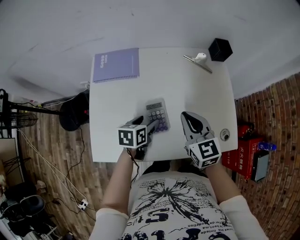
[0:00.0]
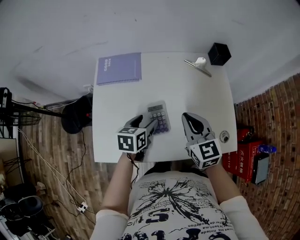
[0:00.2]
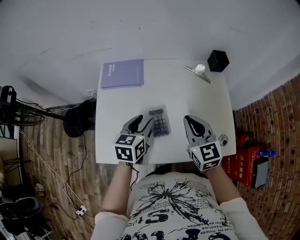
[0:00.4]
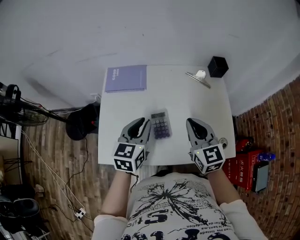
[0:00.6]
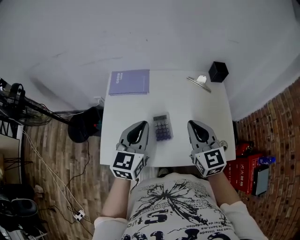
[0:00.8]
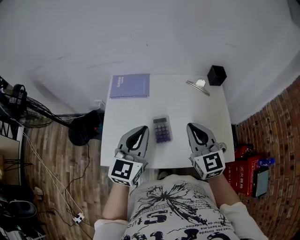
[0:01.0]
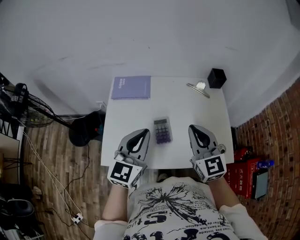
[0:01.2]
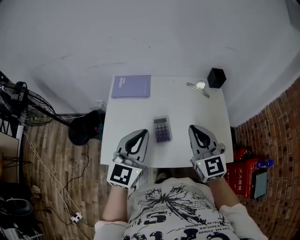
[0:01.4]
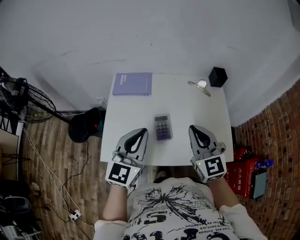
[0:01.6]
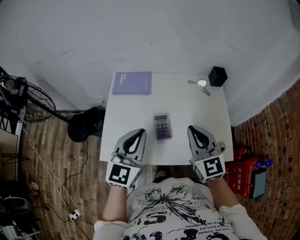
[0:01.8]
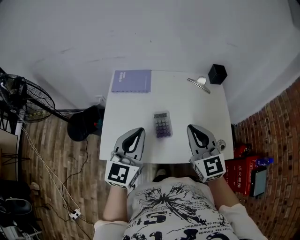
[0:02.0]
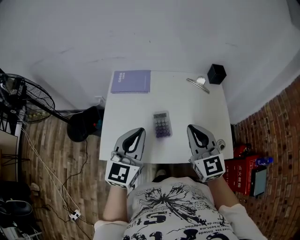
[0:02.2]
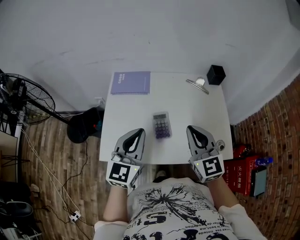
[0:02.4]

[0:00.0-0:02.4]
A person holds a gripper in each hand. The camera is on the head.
0:00.0 to 0:01.2: The right gripper travels upward and backward by some 15 cm. The left gripper moves upward, some 25 cm, tips its fingers upward by about 40 degrees, and closes up.
0:01.2 to 0:02.4: There are only small adjustments of the grippers.

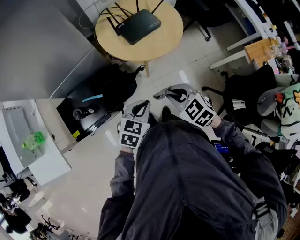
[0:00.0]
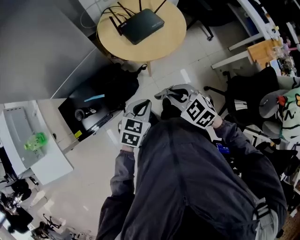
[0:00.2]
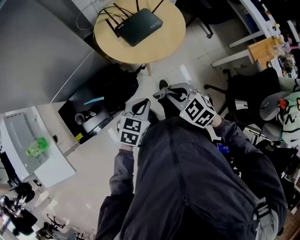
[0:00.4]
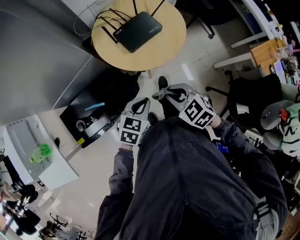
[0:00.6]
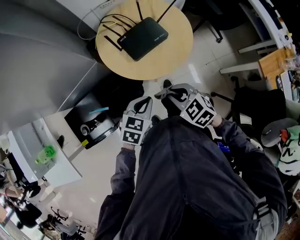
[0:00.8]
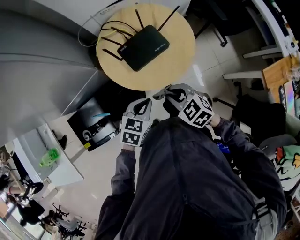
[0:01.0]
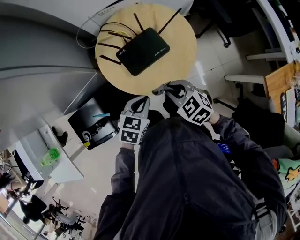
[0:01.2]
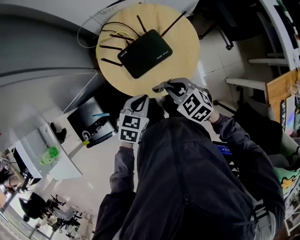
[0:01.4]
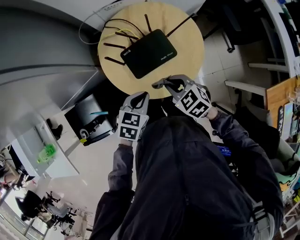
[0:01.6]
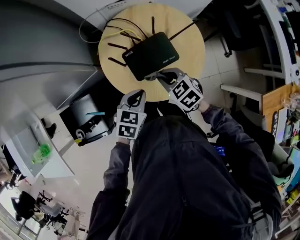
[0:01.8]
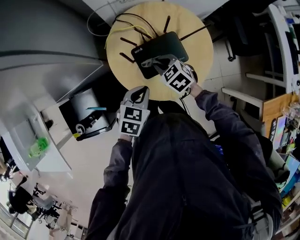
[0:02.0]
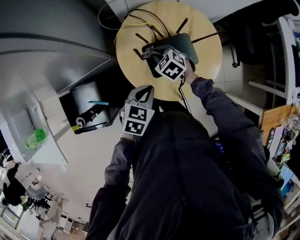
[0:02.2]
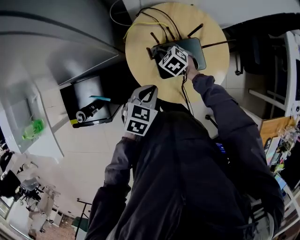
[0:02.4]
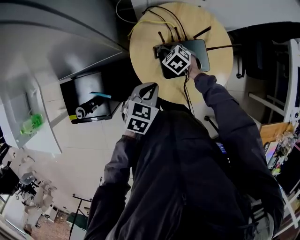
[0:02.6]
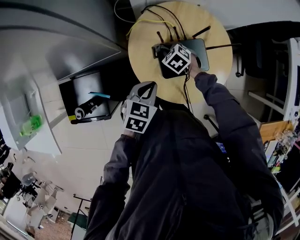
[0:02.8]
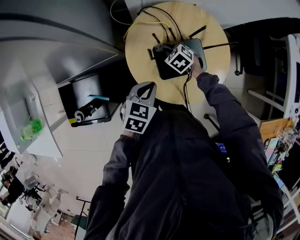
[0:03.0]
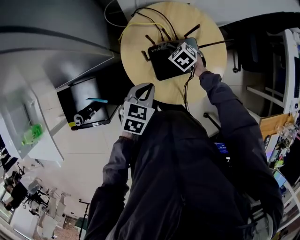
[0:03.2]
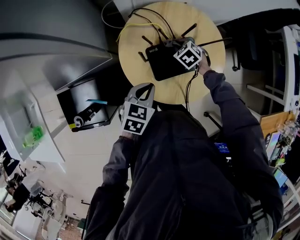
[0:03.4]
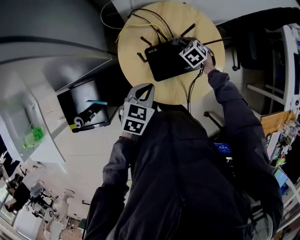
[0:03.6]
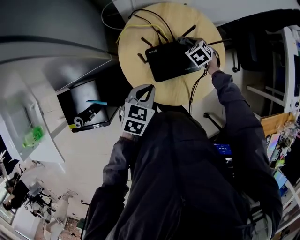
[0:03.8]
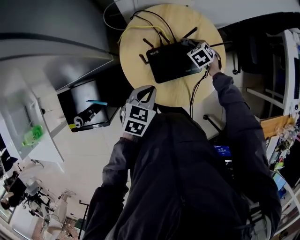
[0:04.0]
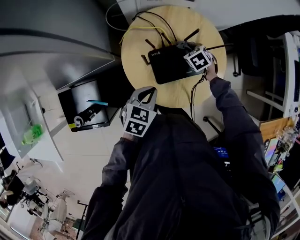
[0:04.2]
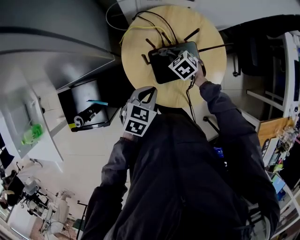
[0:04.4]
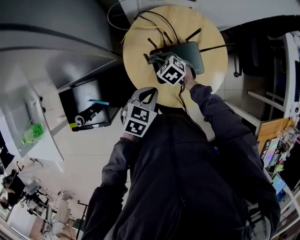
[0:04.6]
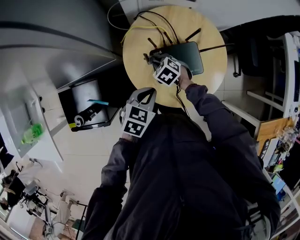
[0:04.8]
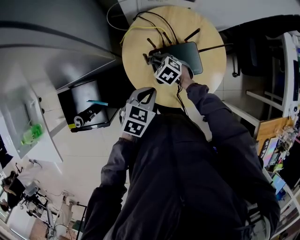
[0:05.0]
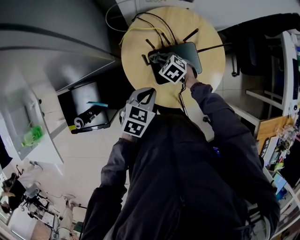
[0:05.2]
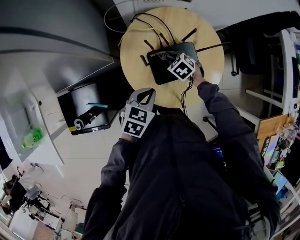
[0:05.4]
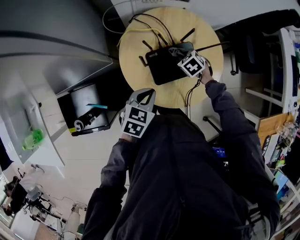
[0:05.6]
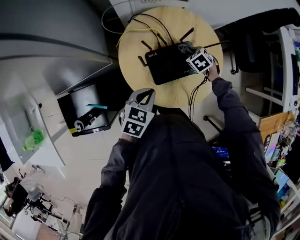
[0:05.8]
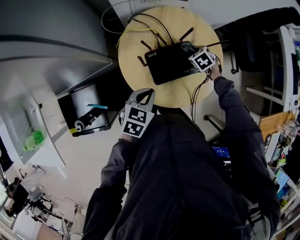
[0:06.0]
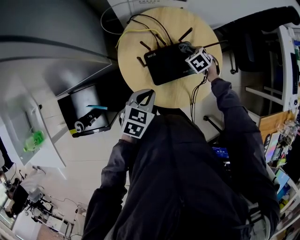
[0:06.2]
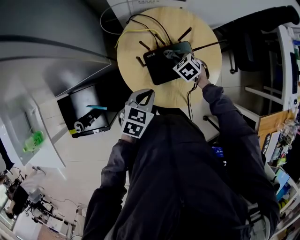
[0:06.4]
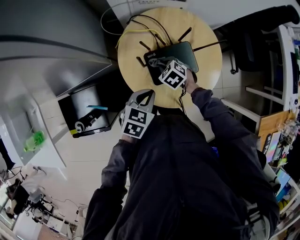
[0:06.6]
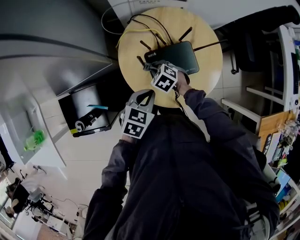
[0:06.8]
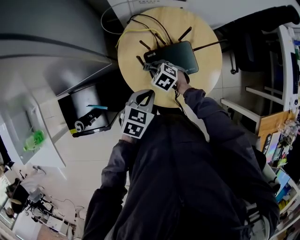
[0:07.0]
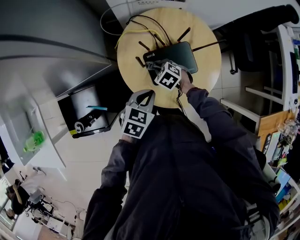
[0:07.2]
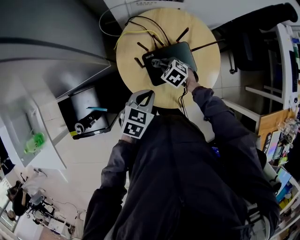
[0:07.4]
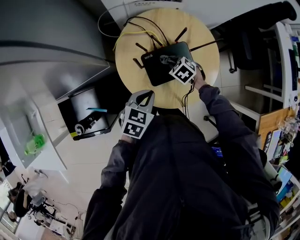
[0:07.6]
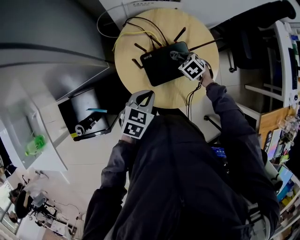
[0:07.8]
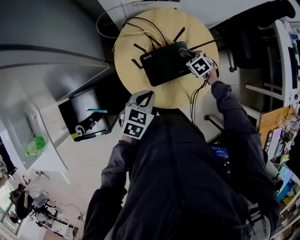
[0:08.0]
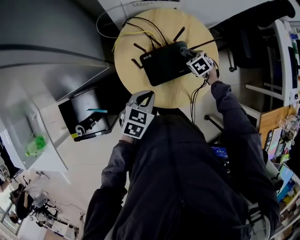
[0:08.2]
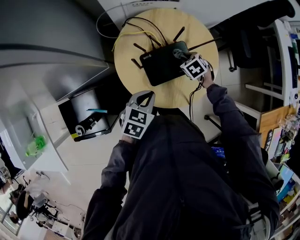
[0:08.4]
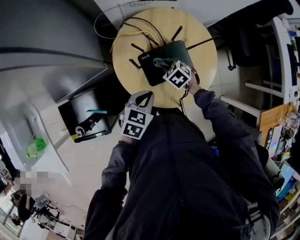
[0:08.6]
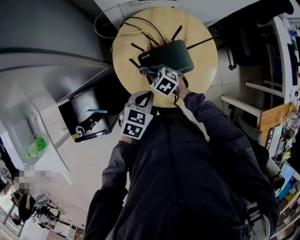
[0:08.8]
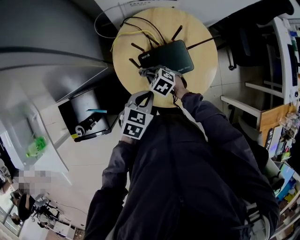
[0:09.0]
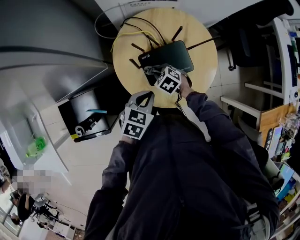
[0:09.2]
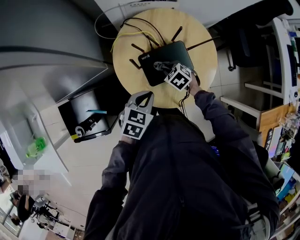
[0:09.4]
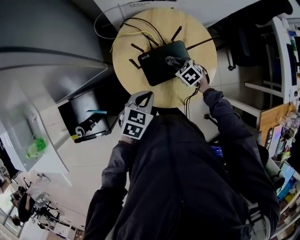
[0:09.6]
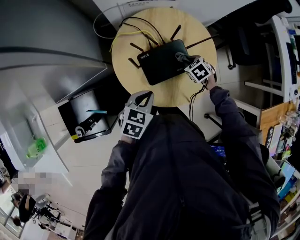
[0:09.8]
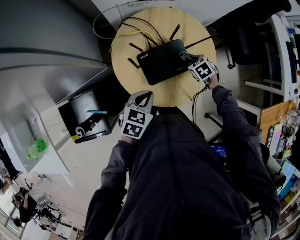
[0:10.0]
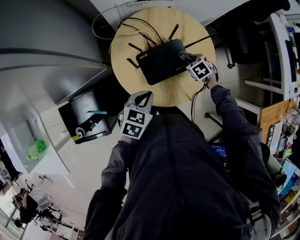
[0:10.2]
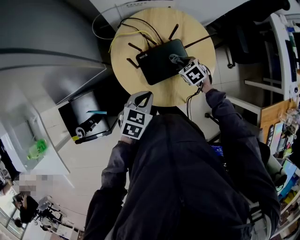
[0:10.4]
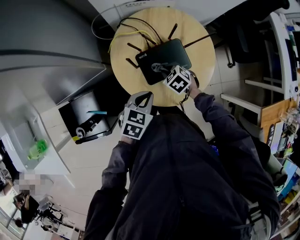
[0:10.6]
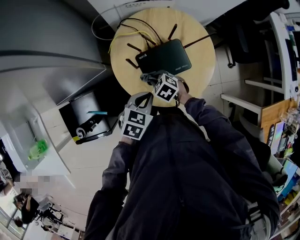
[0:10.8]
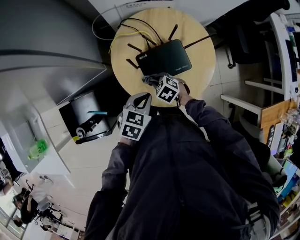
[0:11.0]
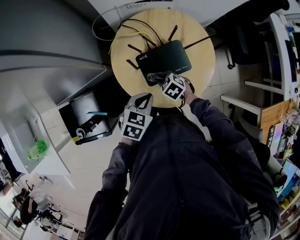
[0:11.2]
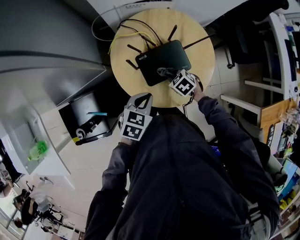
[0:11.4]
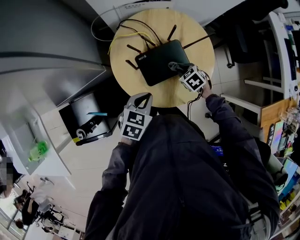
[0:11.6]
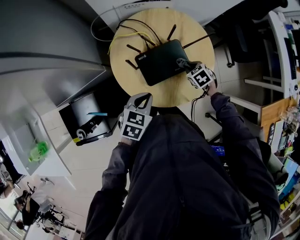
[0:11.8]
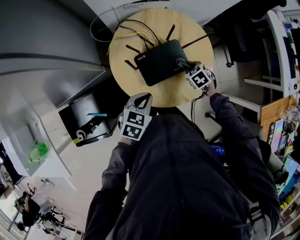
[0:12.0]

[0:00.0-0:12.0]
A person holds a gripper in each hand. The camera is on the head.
0:00.0 to 0:01.6: The grippers both shift forward by roughly 30 cm.
0:01.6 to 0:03.0: The left gripper moves to the left and forward, roughly 10 cm. The right gripper moves forward, downward and to the left, some 25 cm, and rotates roughly 20 degrees.
0:03.0 to 0:04.4: The right gripper moves some 15 cm to the right and comes back.
0:04.4 to 0:06.0: The right gripper heads to the right, covering some 15 cm.
0:06.0 to 0:07.6: The right gripper is displaced to the left and backward by roughly 10 cm.
0:07.6 to 0:09.0: The right gripper goes roughly 10 cm to the left and backward.
0:09.0 to 0:10.4: The right gripper moves to the right, some 15 cm, and rotates roughly 20 degrees.
0:10.4 to 0:12.0: The right gripper travels to the left and back again, about 15 cm each way.

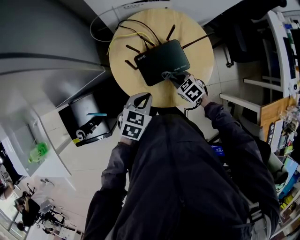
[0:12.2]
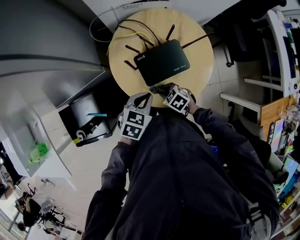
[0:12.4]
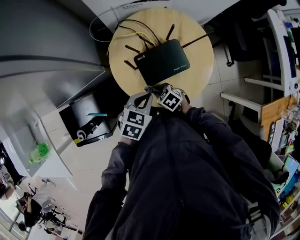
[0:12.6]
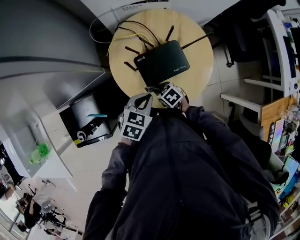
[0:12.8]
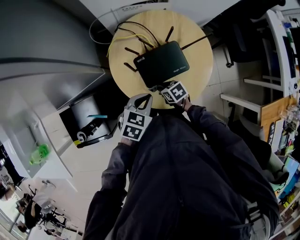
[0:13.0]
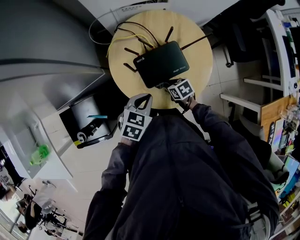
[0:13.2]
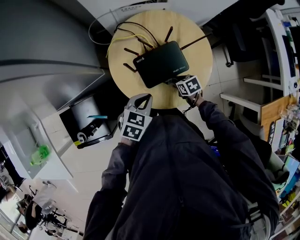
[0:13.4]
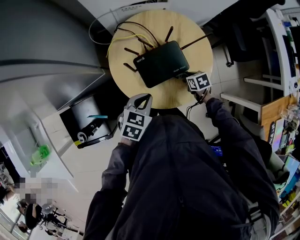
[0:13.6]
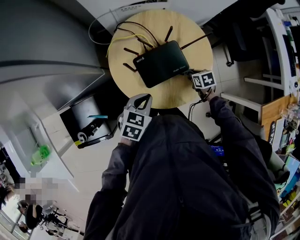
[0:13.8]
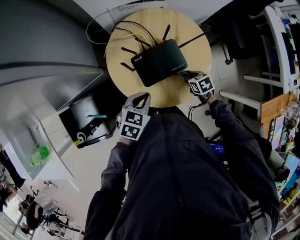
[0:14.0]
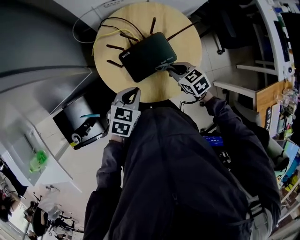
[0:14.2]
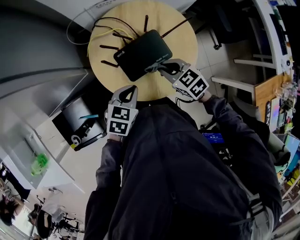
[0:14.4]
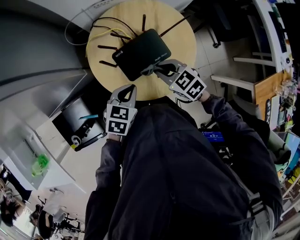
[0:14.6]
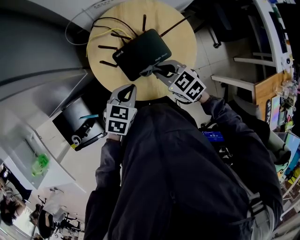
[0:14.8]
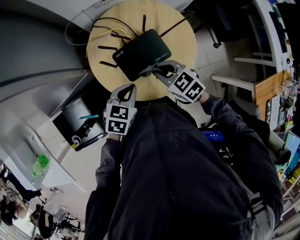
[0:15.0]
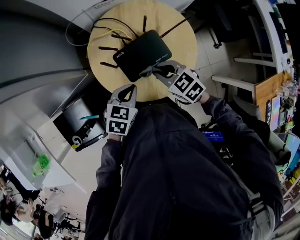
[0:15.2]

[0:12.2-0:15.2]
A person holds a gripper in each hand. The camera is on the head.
0:12.2 to 0:13.8: The right gripper ends up approximately 15 cm from where it was, and changes its angle by roughly 30 degrees.
0:13.8 to 0:15.2: The right gripper is displaced upward and to the left by about 25 cm, and changes its angle by some 40 degrees.

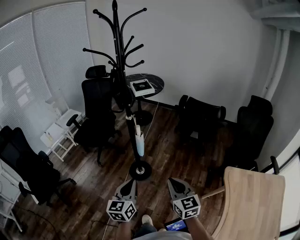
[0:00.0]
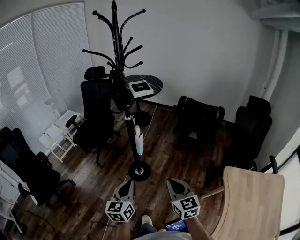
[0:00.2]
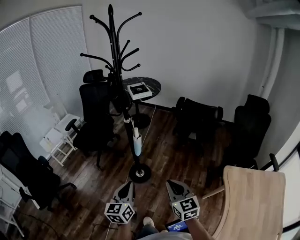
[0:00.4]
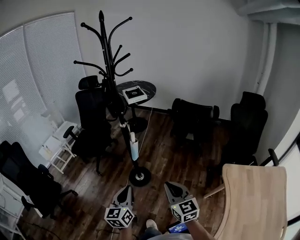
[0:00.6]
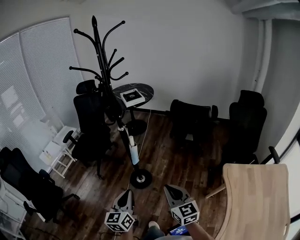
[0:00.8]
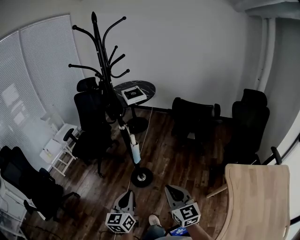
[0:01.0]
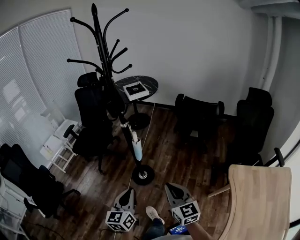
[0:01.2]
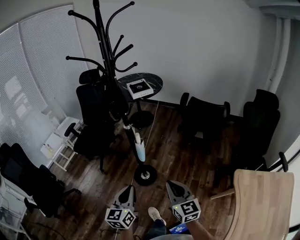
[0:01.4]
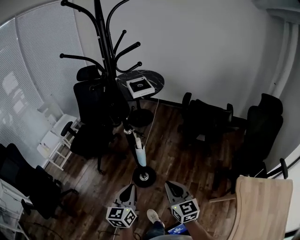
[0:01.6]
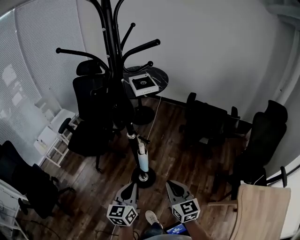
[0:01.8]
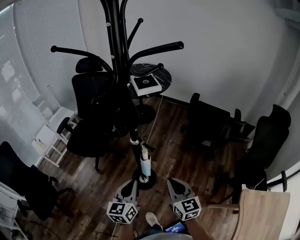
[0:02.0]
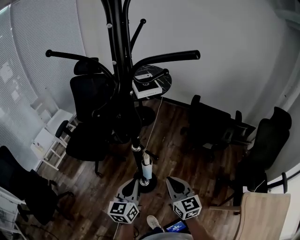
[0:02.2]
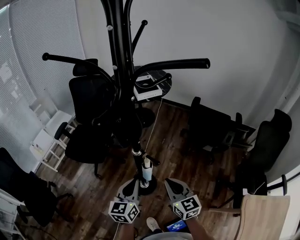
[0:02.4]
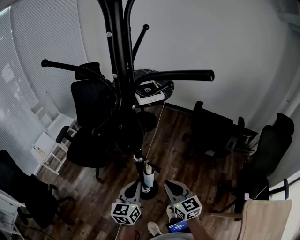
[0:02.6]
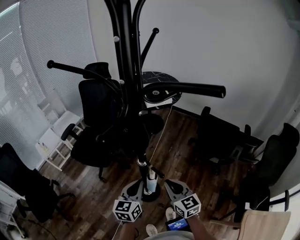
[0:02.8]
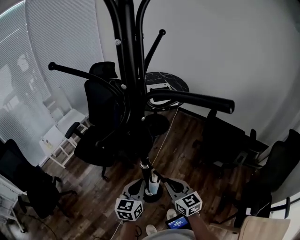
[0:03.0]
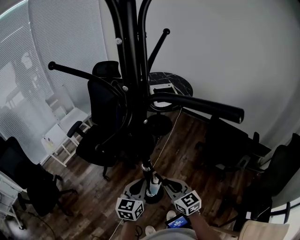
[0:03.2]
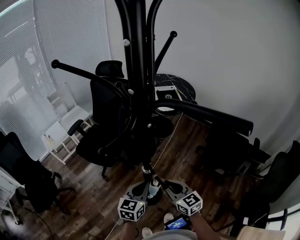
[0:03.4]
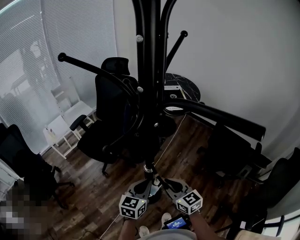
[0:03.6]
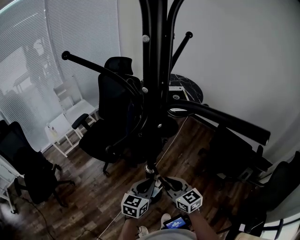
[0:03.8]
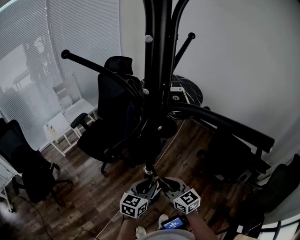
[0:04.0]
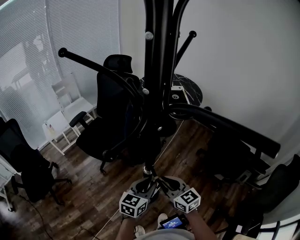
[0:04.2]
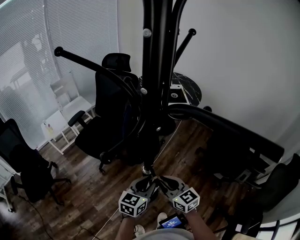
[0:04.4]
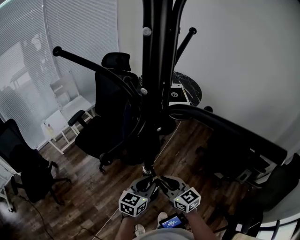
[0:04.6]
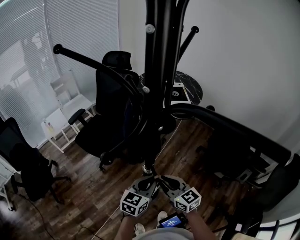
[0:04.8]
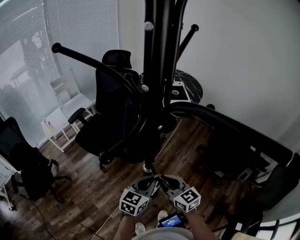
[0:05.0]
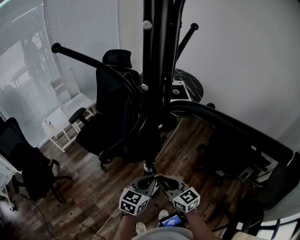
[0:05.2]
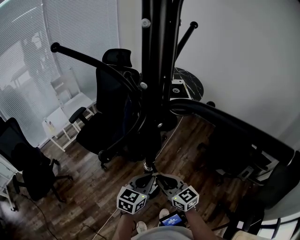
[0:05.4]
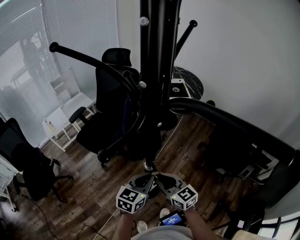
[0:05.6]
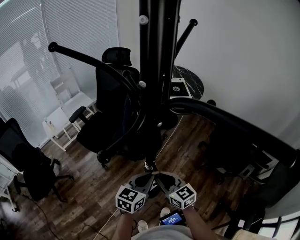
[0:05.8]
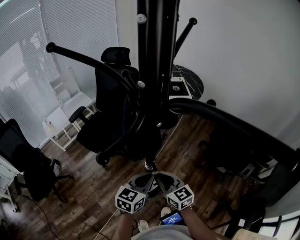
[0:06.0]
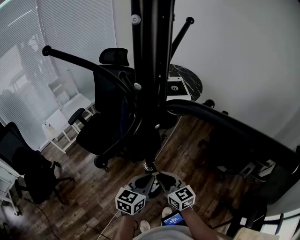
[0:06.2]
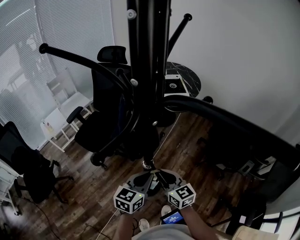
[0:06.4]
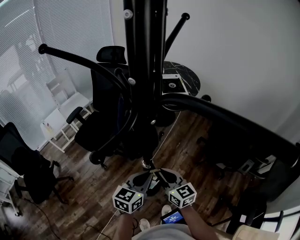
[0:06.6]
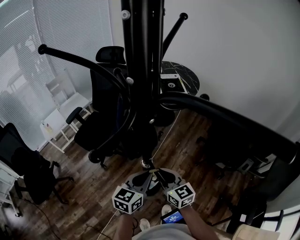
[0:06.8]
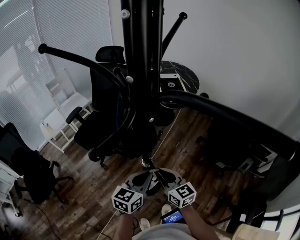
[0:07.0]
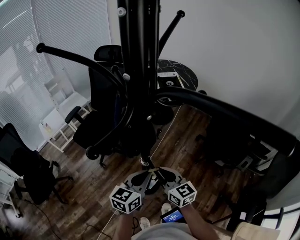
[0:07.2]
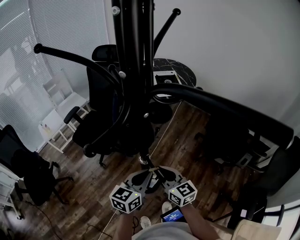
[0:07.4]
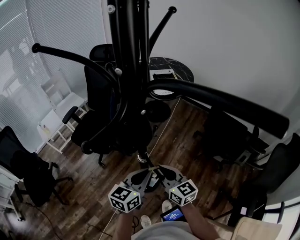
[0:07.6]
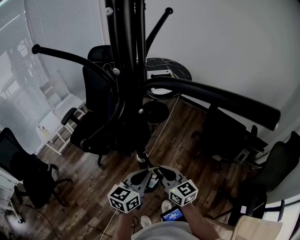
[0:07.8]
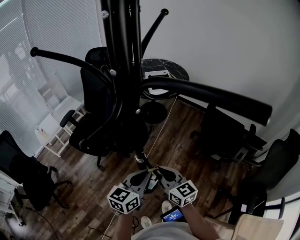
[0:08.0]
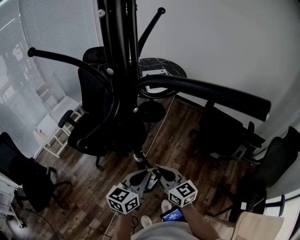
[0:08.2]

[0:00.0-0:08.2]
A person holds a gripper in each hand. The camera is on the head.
0:00.0 to 0:01.6: The two grippers go some 15 cm forward.
0:01.6 to 0:03.2: The grippers both shift forward by approximately 30 cm. The right gripper swivels about 20 degrees.
0:03.2 to 0:05.0: The left gripper changes place by approximately 5 cm.
0:05.0 to 0:08.2: The grippers move only a little.
